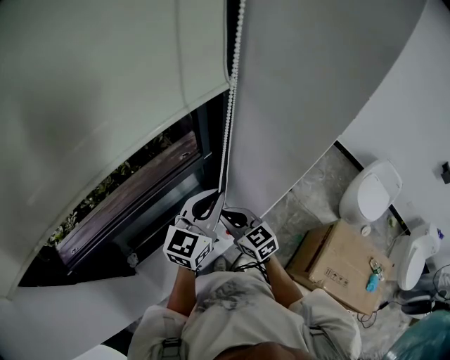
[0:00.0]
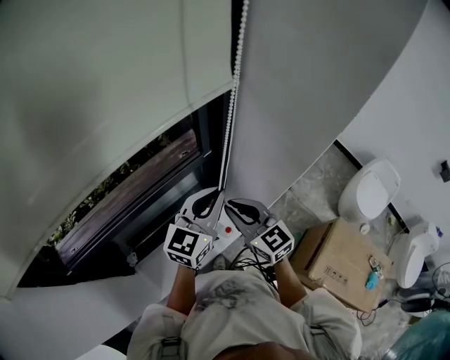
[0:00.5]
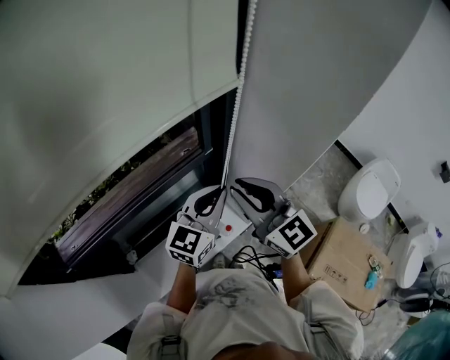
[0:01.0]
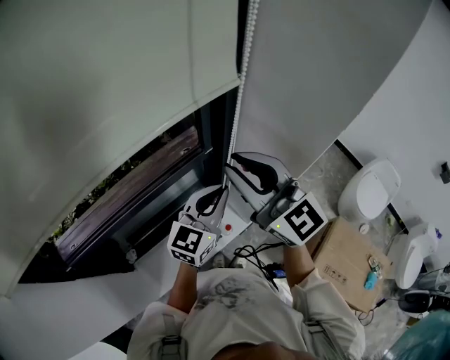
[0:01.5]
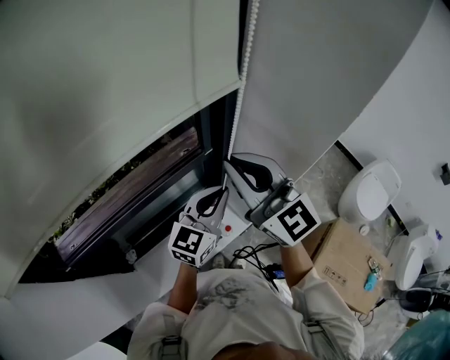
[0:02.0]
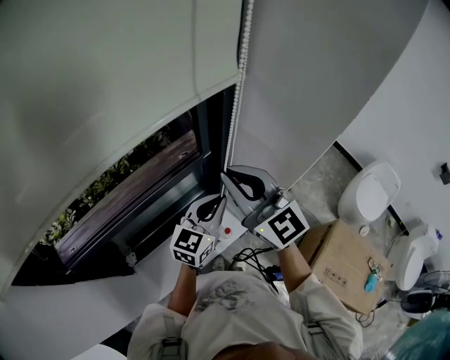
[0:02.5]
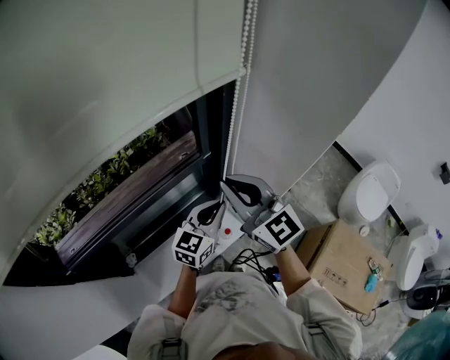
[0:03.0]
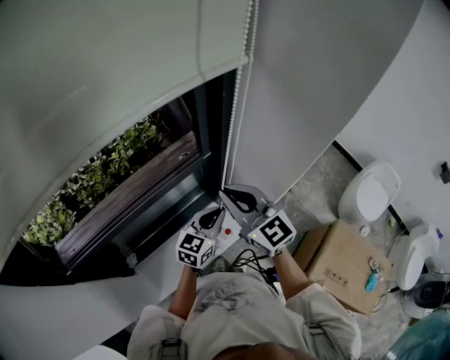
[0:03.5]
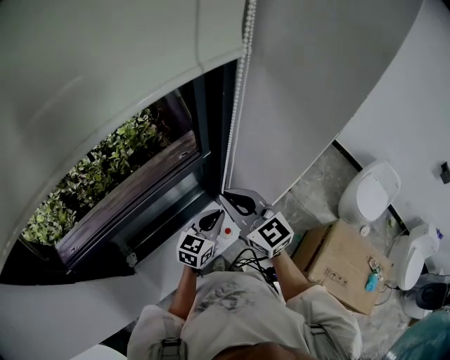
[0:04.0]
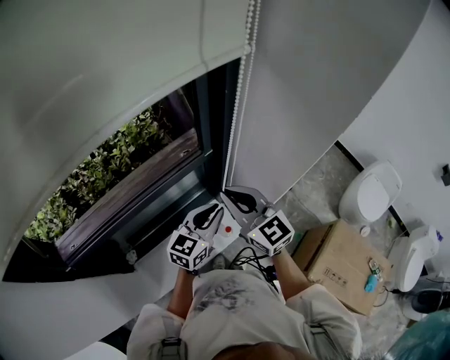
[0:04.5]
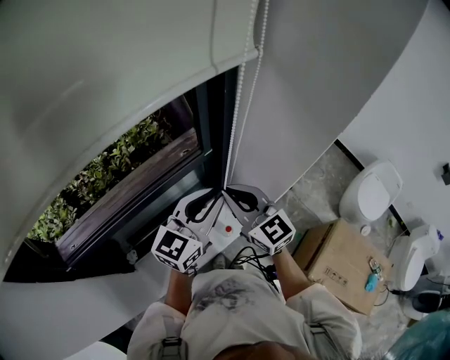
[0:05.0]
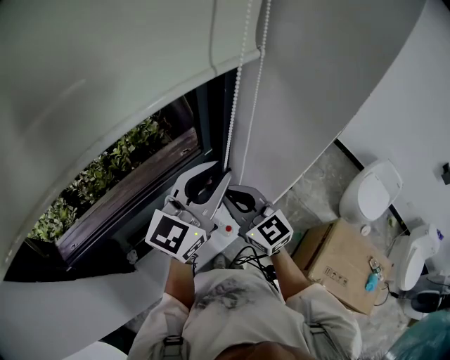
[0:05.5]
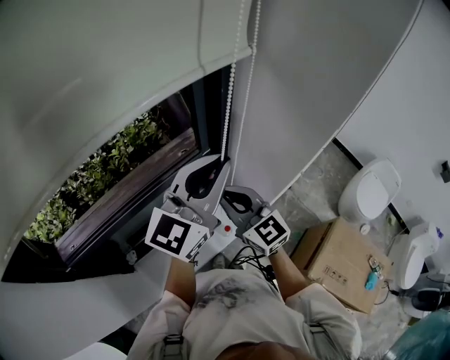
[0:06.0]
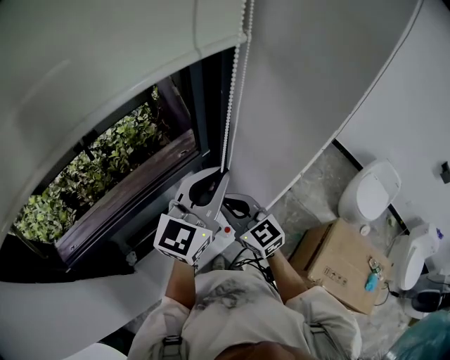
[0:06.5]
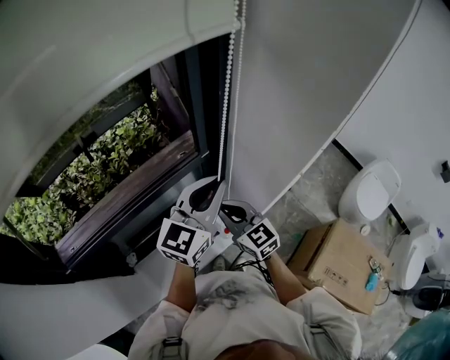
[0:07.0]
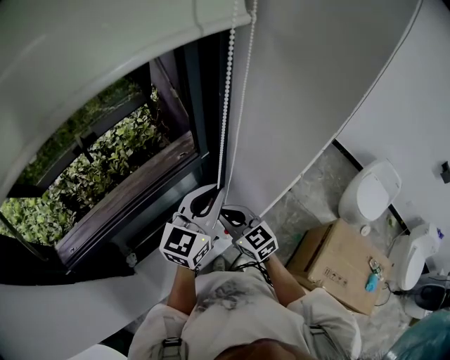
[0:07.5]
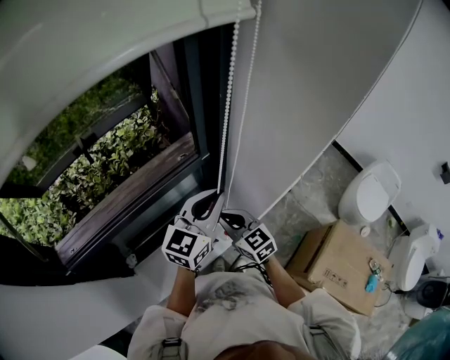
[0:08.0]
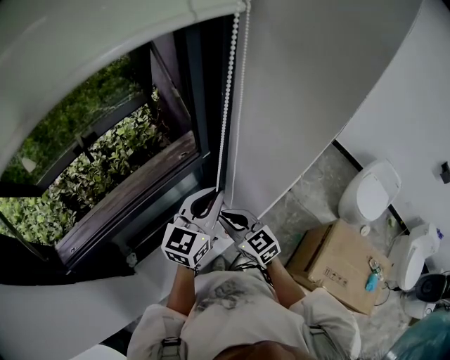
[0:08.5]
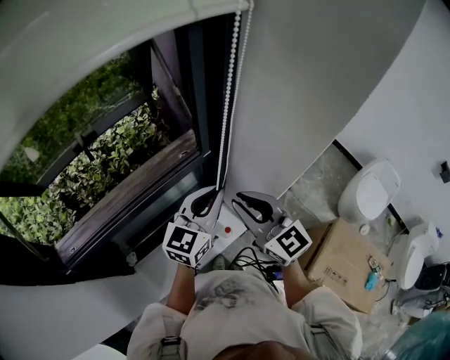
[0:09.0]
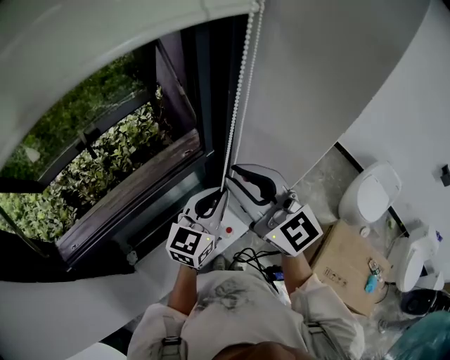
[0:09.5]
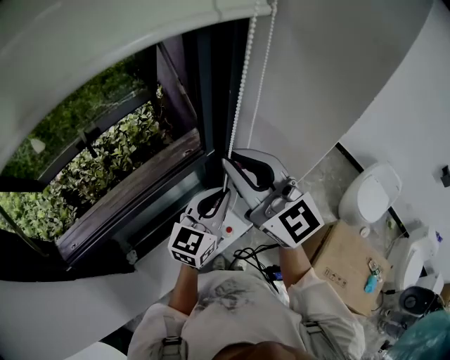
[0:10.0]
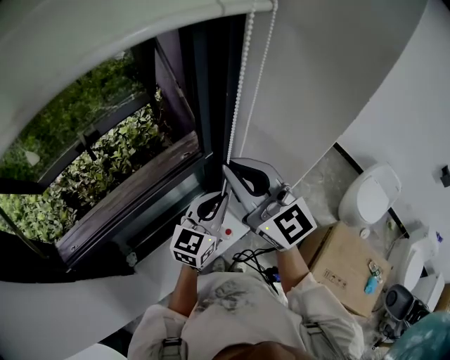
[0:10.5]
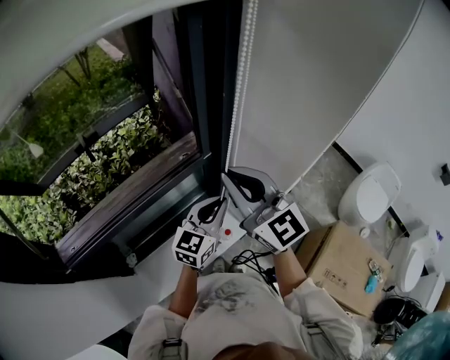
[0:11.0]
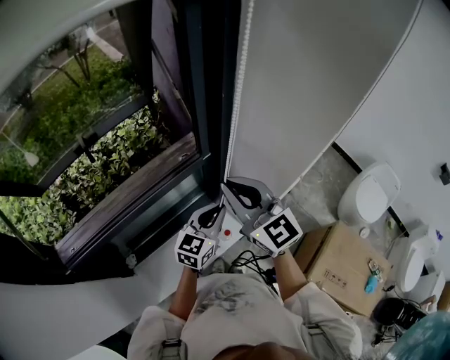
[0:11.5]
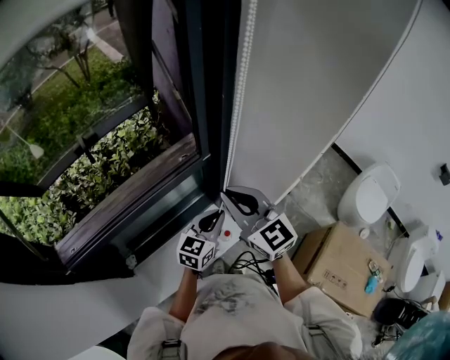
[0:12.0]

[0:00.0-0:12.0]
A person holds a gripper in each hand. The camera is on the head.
0:00.0 to 0:02.0: The right gripper shifts about 30 cm upward, and angles its fingers upward, by roughly 30 degrees.
0:02.0 to 0:04.0: Both grippers move downward, approximately 15 cm.
0:04.0 to 0:06.0: The left gripper travels upward by roughly 30 cm, and turns by approximately 30 degrees.
0:06.0 to 0:08.0: Both grippers move downward, roughly 15 cm.
0:08.0 to 0:10.0: The right gripper shifts approximately 30 cm upward, and angles its fingers upward, by about 30 degrees.
0:10.0 to 0:12.0: Both grippers travel together downward, roughly 15 cm.

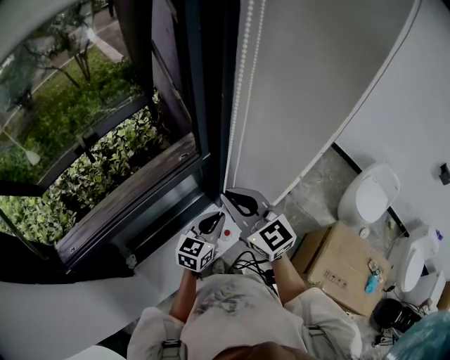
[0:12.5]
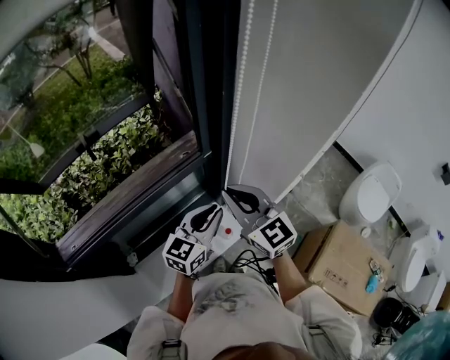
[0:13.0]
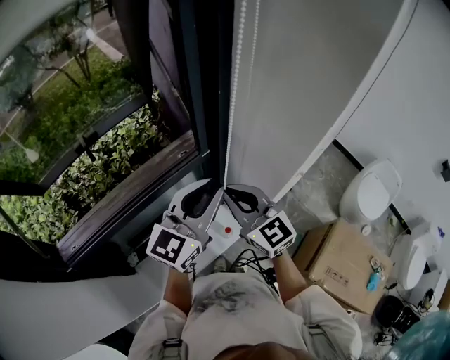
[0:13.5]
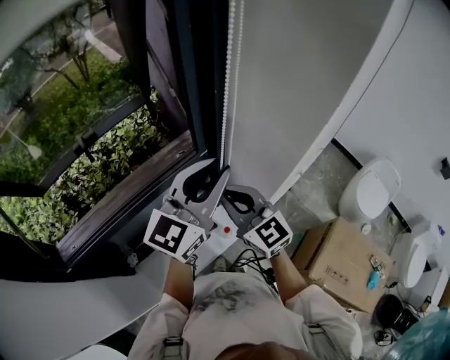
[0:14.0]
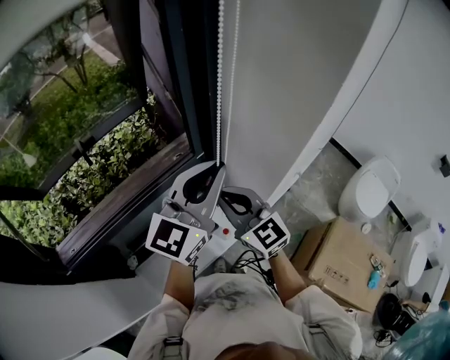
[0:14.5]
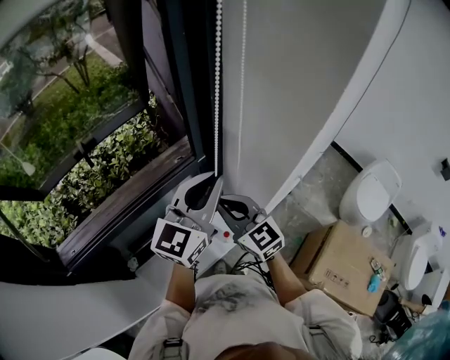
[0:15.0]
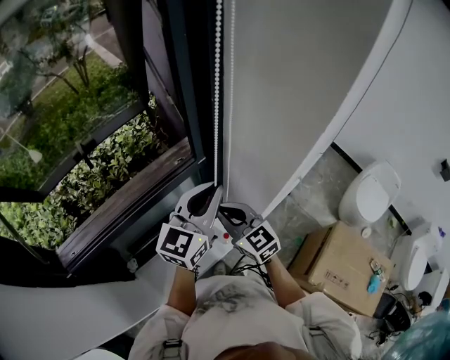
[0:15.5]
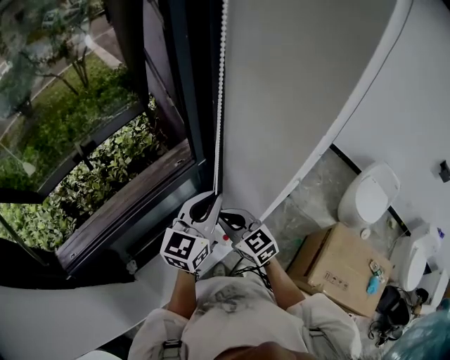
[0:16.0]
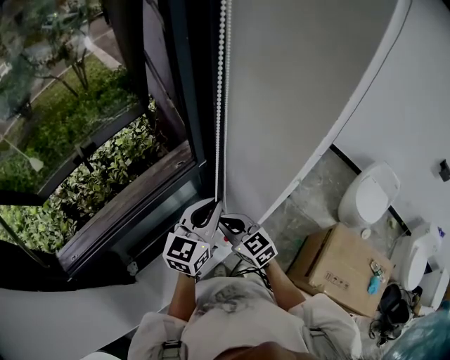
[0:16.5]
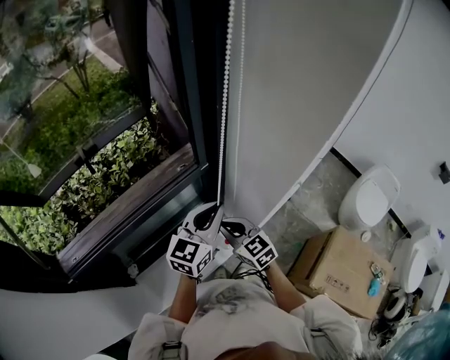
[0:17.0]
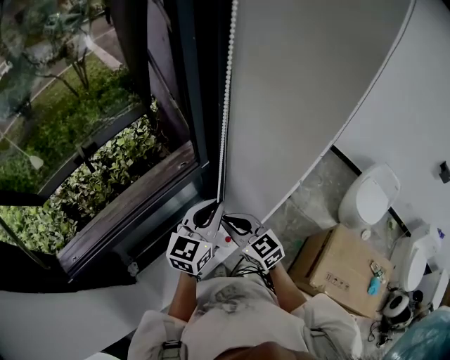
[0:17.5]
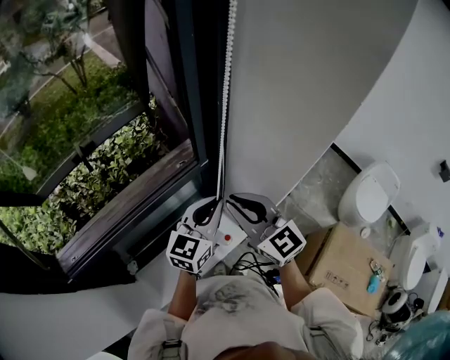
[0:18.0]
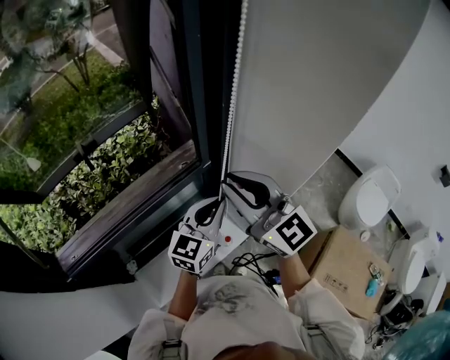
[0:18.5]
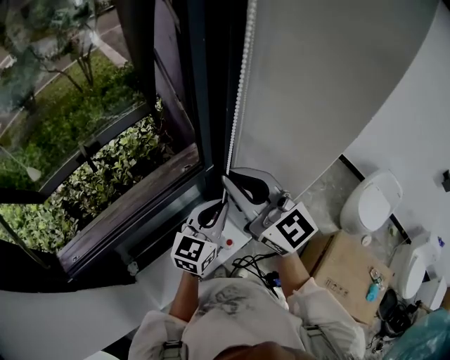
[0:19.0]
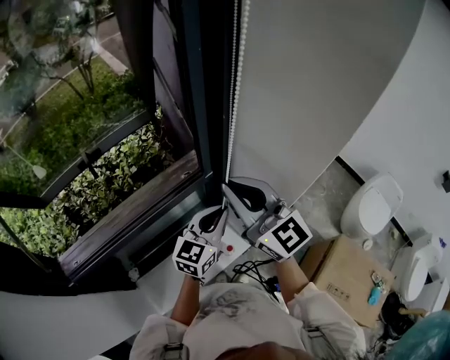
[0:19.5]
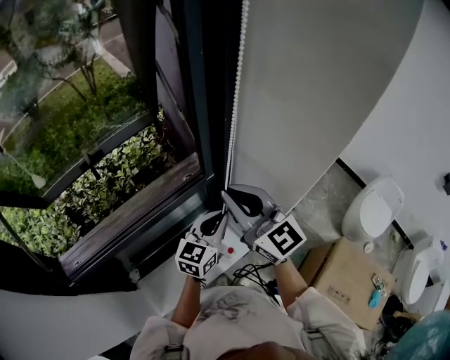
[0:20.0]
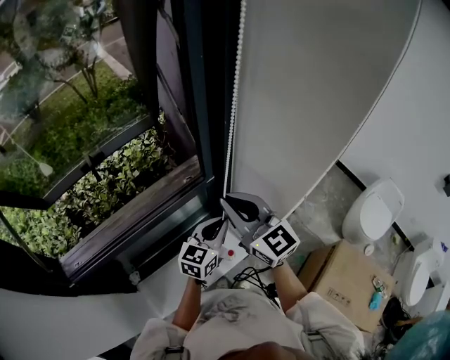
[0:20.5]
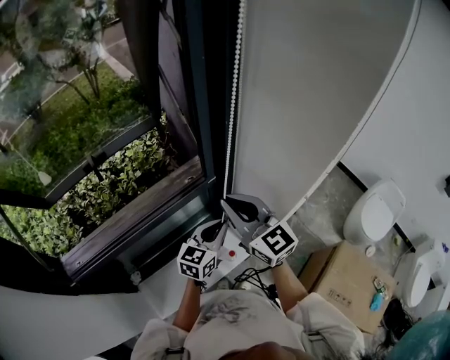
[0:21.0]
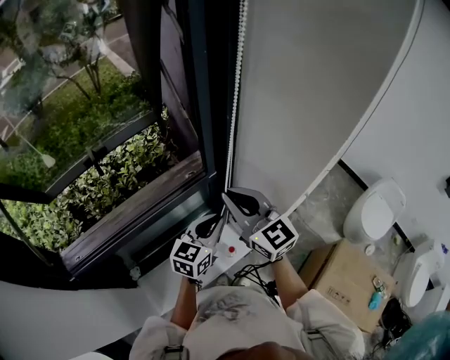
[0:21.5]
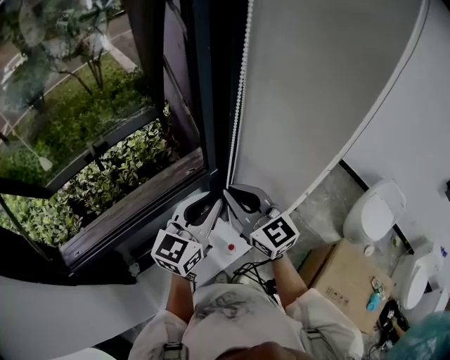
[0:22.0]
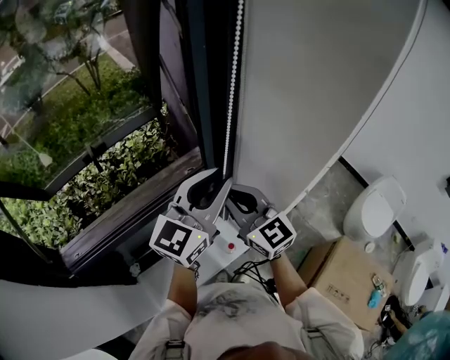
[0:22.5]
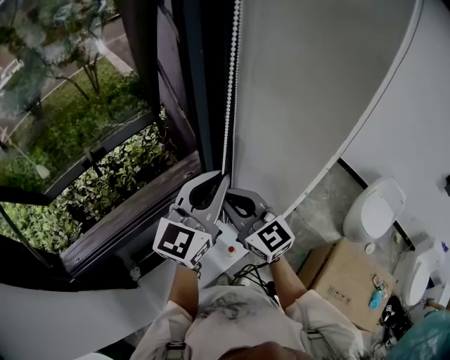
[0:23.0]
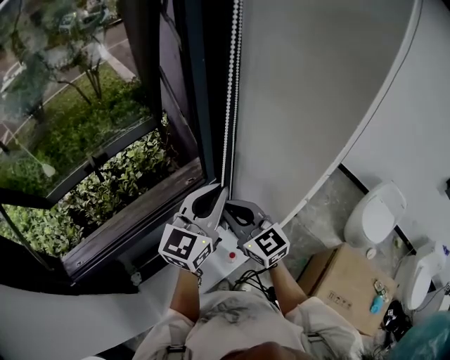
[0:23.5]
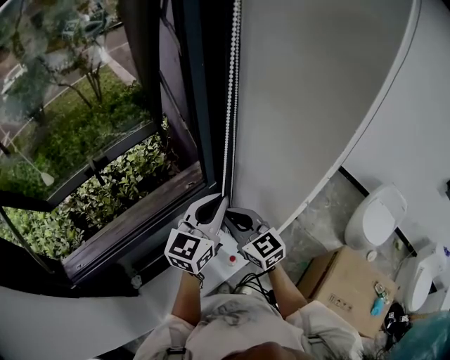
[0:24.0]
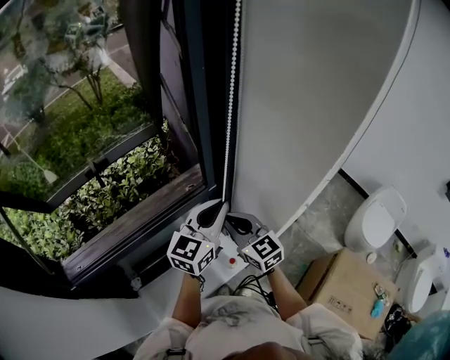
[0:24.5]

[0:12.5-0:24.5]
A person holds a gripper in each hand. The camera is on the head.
0:12.5 to 0:14.5: The left gripper is displaced upward by some 30 cm, and swivels about 30 degrees.
0:14.5 to 0:16.5: Both grippers move downward, some 15 cm.
0:16.5 to 0:18.5: The right gripper goes about 25 cm upward, and changes its angle by some 30 degrees.
0:18.5 to 0:20.5: The grippers both shift downward by roughly 5 cm.
0:20.5 to 0:22.5: The left gripper travels upward by some 20 cm, and rotates approximately 20 degrees.
0:22.5 to 0:24.5: Both grippers move downward, some 10 cm.

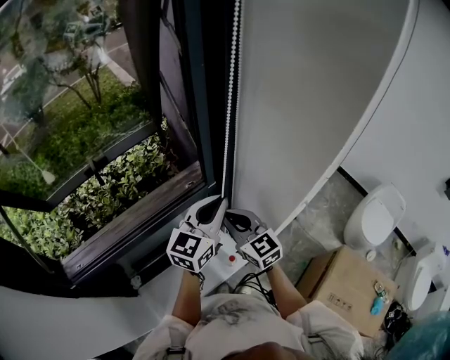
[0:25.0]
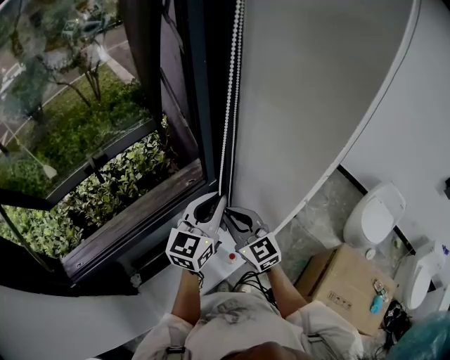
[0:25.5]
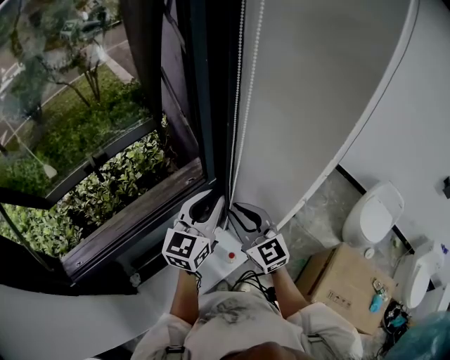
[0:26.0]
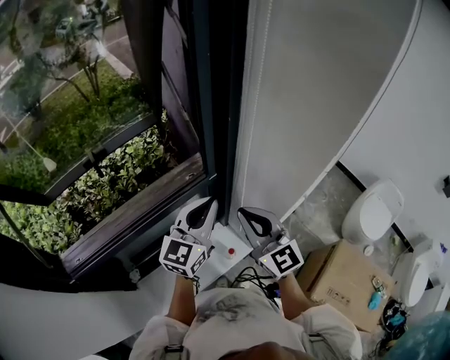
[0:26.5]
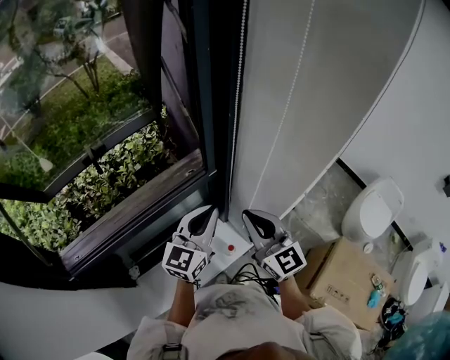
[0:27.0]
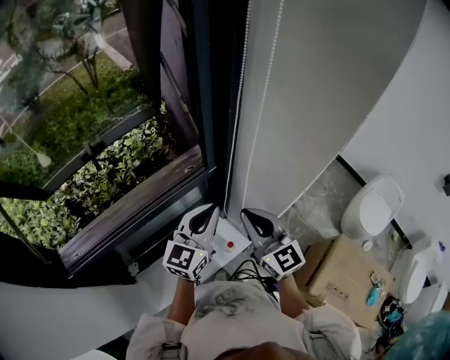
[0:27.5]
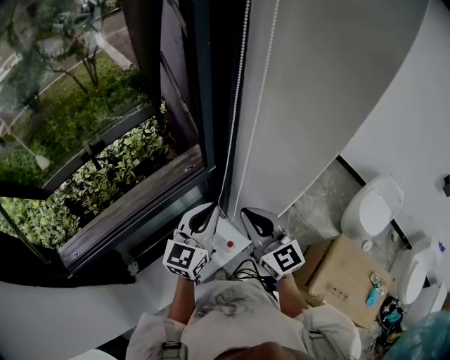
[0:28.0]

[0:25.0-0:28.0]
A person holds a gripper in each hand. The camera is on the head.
0:25.0 to 0:26.5: The right gripper is displaced upward by some 5 cm.
0:26.5 to 0:28.0: The grippers stay close to where they were, moving slightly.
